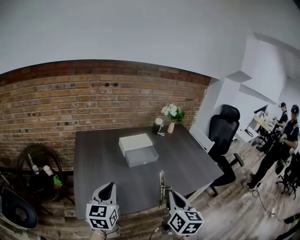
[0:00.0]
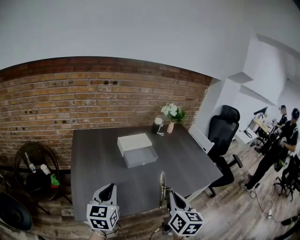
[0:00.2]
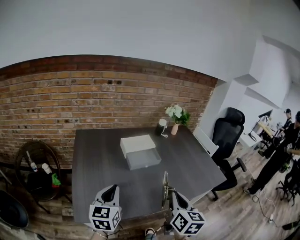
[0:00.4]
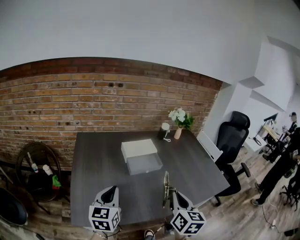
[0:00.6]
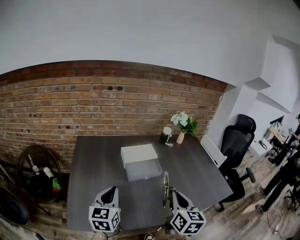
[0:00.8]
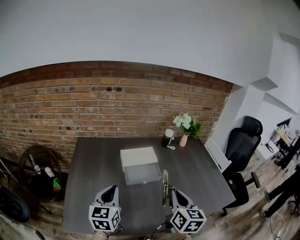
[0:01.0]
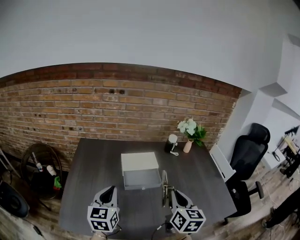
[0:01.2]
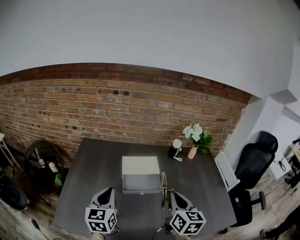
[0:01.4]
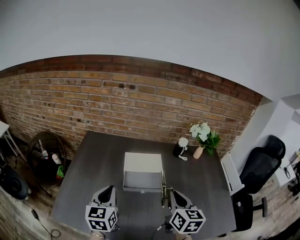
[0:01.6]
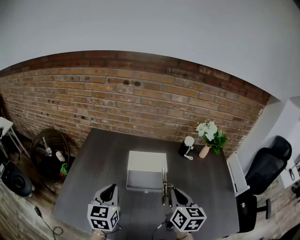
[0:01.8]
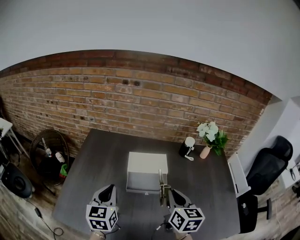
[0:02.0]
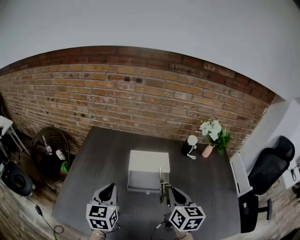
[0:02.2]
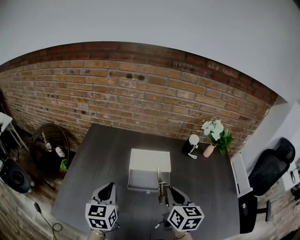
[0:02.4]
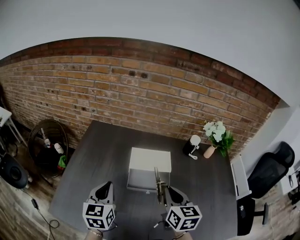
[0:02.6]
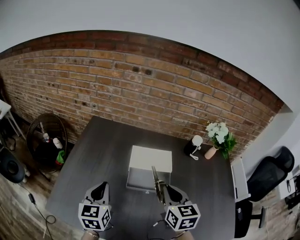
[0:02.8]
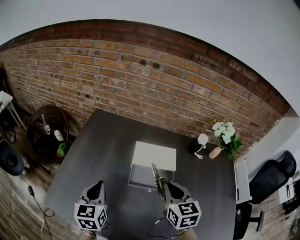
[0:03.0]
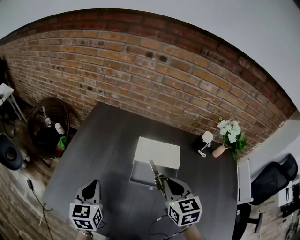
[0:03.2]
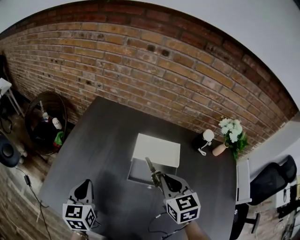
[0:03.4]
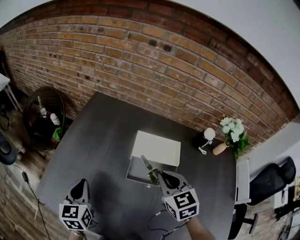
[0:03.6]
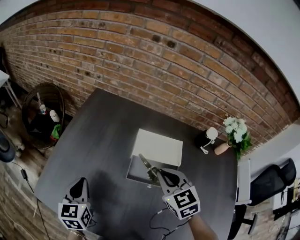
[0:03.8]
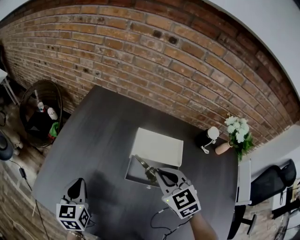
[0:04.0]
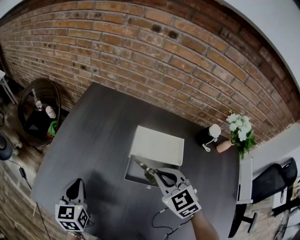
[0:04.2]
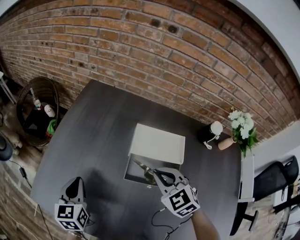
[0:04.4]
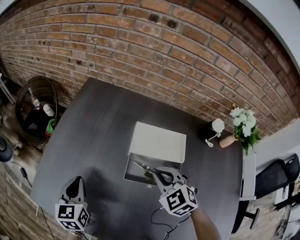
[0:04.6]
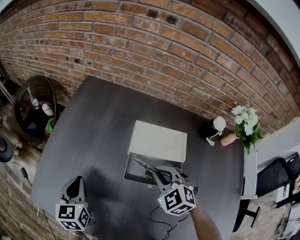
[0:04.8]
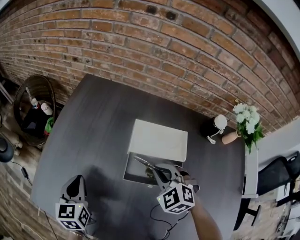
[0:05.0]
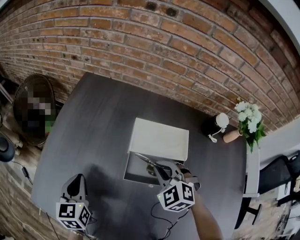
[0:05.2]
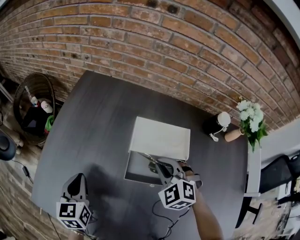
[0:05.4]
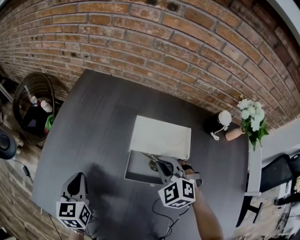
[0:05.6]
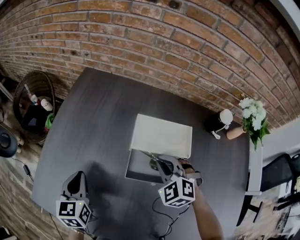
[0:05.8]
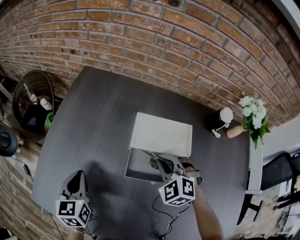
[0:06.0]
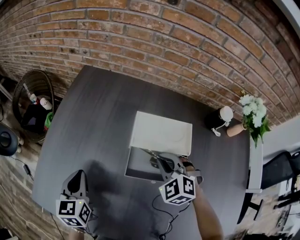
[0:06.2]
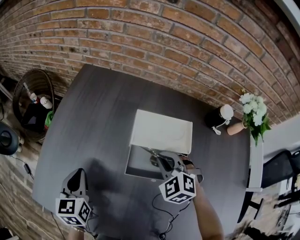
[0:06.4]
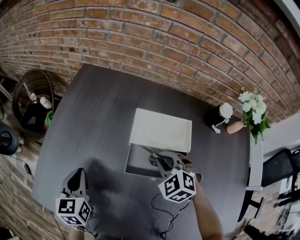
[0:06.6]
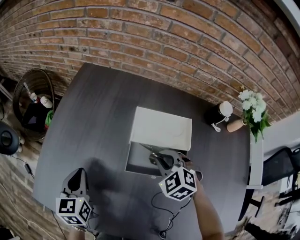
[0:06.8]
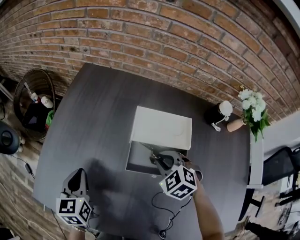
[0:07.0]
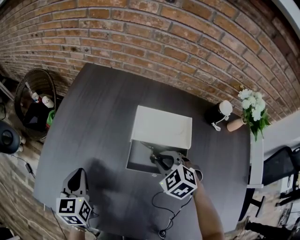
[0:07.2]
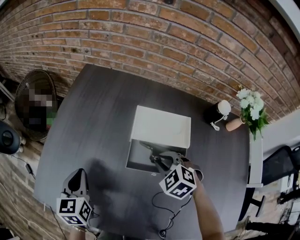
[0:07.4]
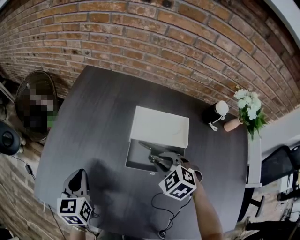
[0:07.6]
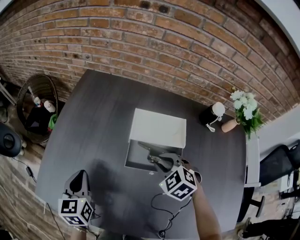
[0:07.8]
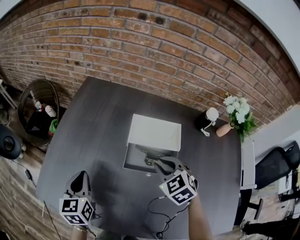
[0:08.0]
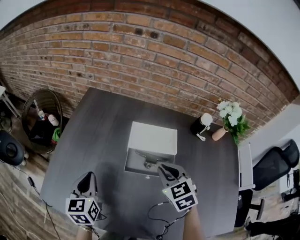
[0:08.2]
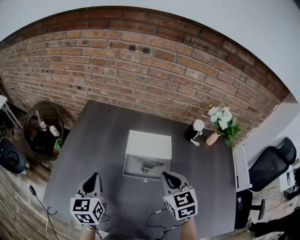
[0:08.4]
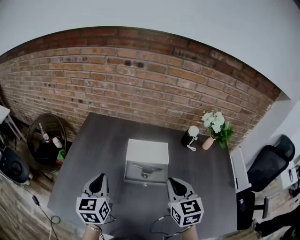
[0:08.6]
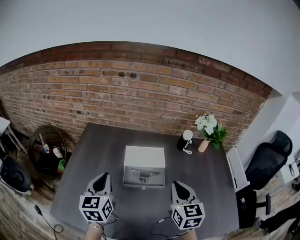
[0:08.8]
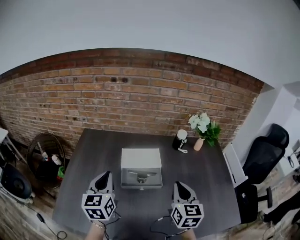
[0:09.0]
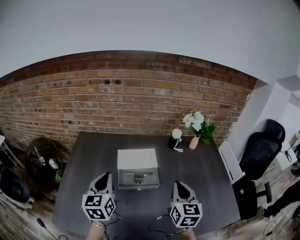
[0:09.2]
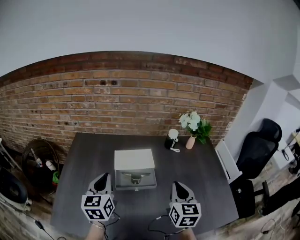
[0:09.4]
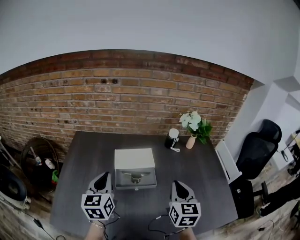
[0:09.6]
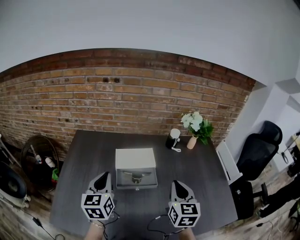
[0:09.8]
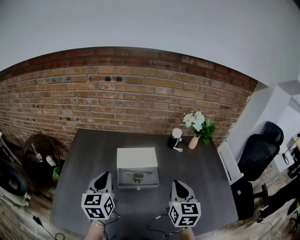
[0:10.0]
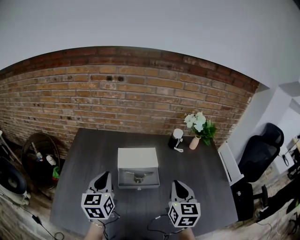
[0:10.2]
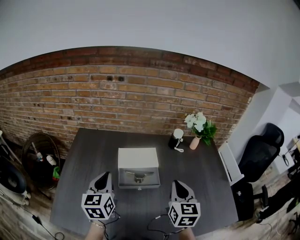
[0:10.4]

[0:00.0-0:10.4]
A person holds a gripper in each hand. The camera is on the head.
0:00.0 to 0:01.4: The right gripper travels forward by some 30 cm, and turns by some 20 degrees. The left gripper travels forward and to the right by roughly 20 cm, and changes its angle by approximately 20 degrees.
0:01.4 to 0:03.0: The right gripper moves forward, downward and to the left, approximately 15 cm, and rotates roughly 30 degrees, while the left gripper travels downward and to the left by approximately 10 cm.
0:03.0 to 0:04.4: The right gripper goes approximately 10 cm downward and forward, and turns by approximately 40 degrees; the left gripper goes approximately 10 cm downward and to the left.
0:04.4 to 0:06.0: The right gripper heads downward, covering roughly 5 cm.
0:06.0 to 0:07.4: The grippers move only a little.
0:07.4 to 0:09.0: The grippers both shift upward by about 20 cm. The right gripper tips its fingers upward by approximately 50 degrees; the left gripper turns by some 30 degrees.
0:09.0 to 0:10.4: The grippers move only a little.

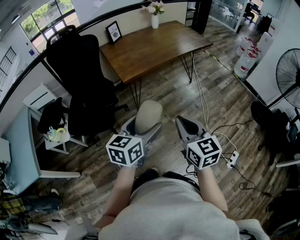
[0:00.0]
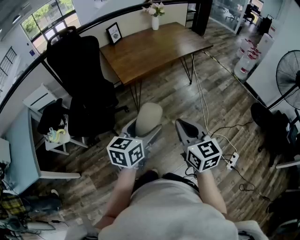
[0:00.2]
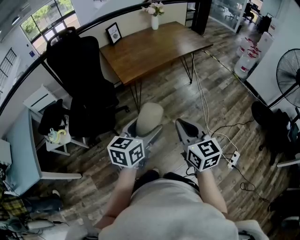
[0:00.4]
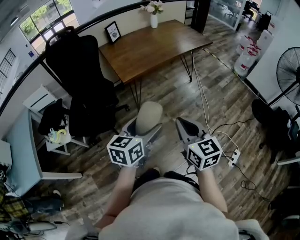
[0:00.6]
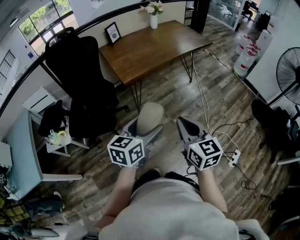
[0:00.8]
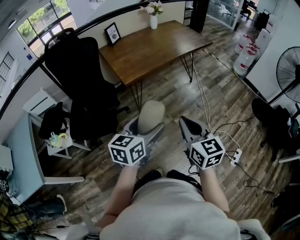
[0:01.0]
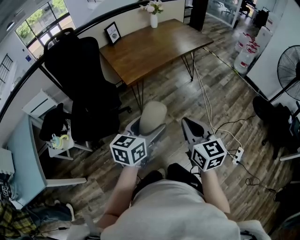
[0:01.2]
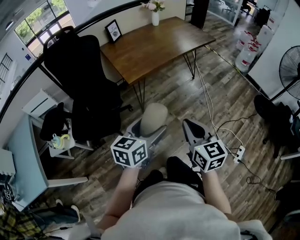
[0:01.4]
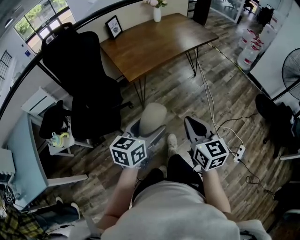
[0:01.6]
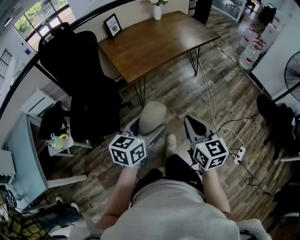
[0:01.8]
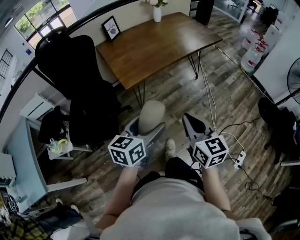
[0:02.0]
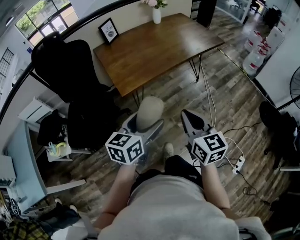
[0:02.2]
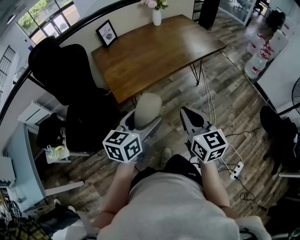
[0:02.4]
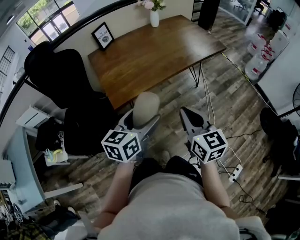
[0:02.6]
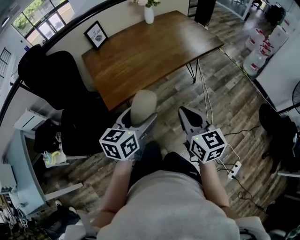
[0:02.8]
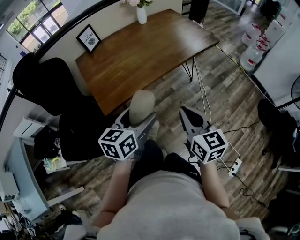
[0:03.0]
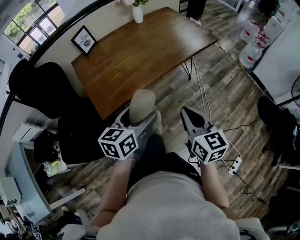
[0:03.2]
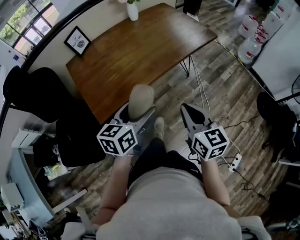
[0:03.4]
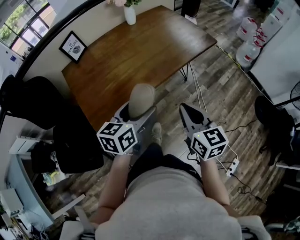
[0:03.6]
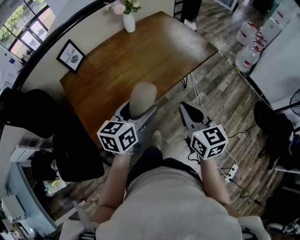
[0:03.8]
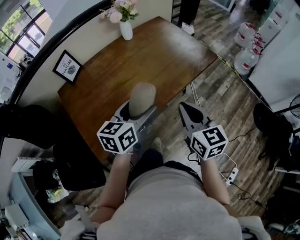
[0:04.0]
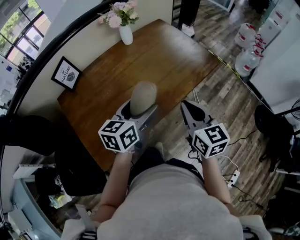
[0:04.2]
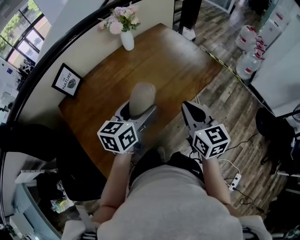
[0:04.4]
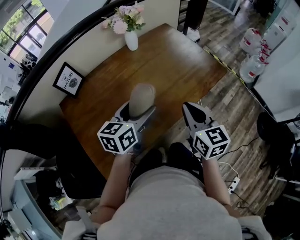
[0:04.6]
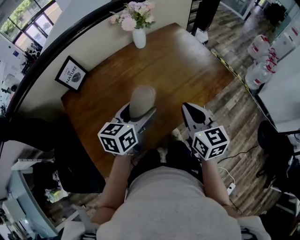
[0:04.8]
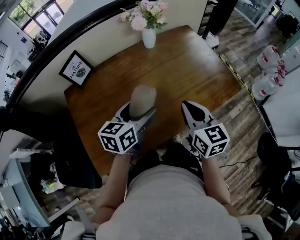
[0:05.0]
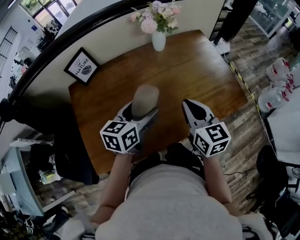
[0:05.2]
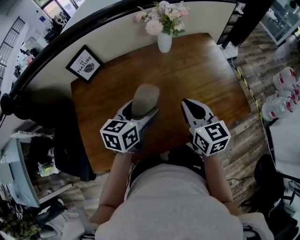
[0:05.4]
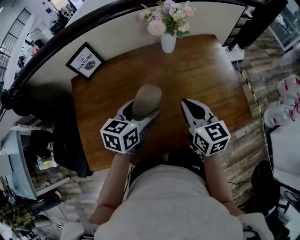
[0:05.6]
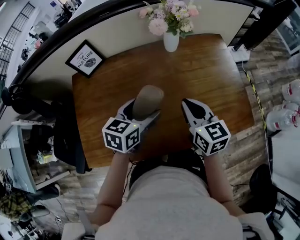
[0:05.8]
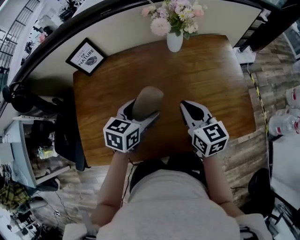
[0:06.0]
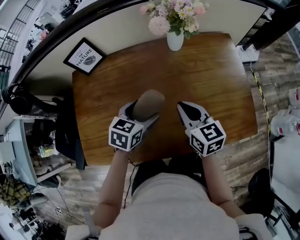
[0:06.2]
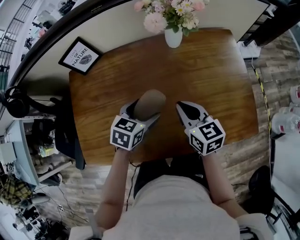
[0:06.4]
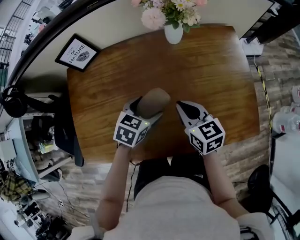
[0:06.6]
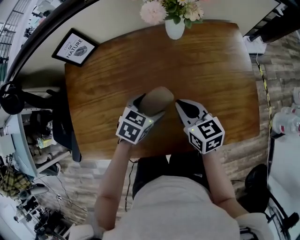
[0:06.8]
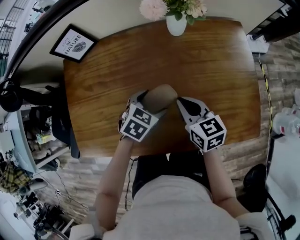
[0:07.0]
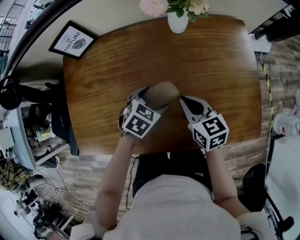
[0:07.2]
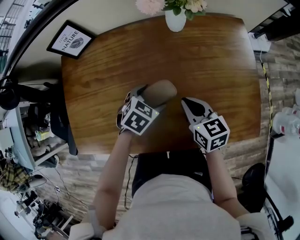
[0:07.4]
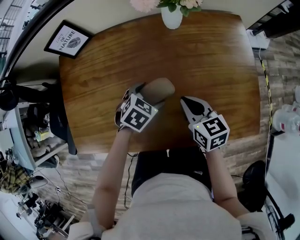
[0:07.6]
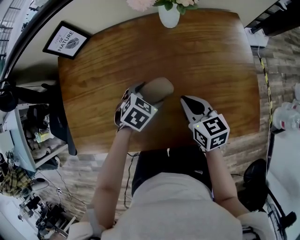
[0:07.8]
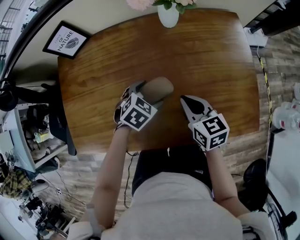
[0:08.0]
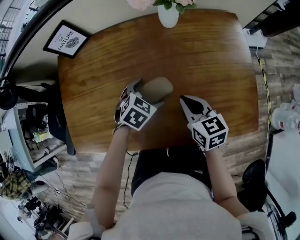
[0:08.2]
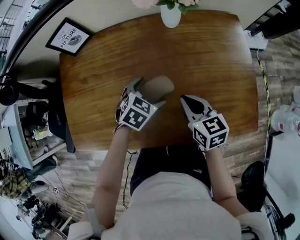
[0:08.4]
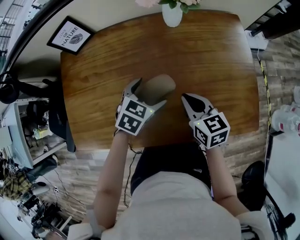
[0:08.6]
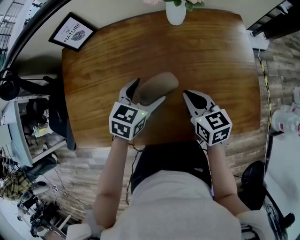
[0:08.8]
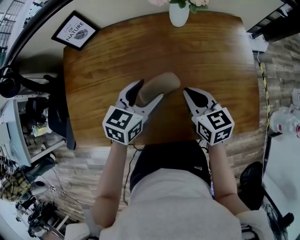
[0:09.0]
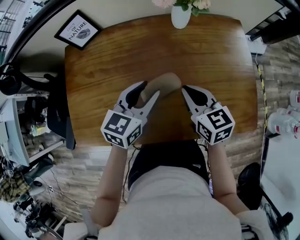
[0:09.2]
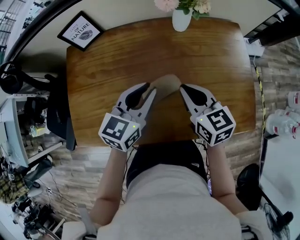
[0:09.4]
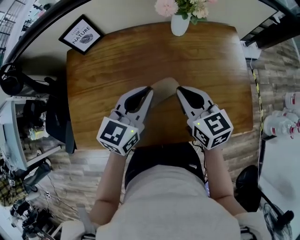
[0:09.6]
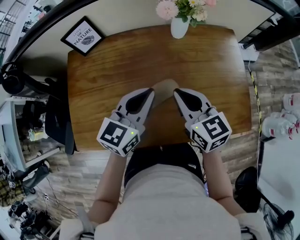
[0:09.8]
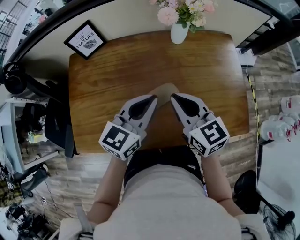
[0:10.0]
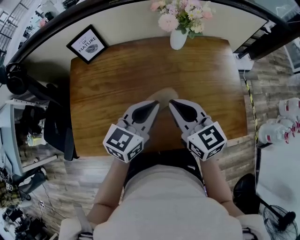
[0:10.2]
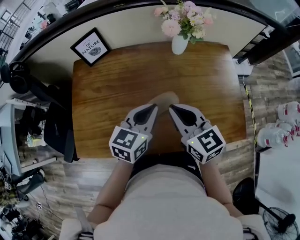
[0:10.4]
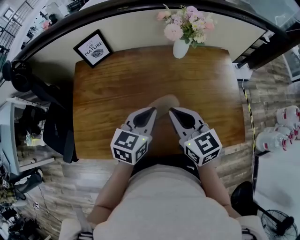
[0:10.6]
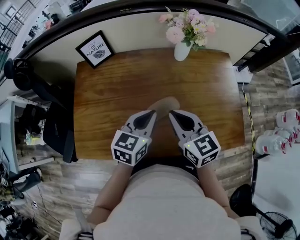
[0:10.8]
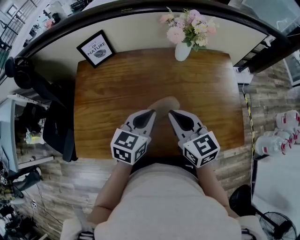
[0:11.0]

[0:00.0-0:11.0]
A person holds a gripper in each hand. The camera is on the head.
0:00.0 to 0:01.6: The left gripper shifts by roughly 5 cm, while the right gripper ends up some 5 cm from where it was.
0:01.6 to 0:03.2: Both grippers travel together forward, about 30 cm.
0:03.2 to 0:04.8: The grippers both shift forward by roughly 35 cm.
0:04.8 to 0:06.2: The left gripper ends up roughly 15 cm from where it was, and changes its angle by about 30 degrees. The right gripper moves roughly 20 cm, and changes its angle by about 30 degrees.
0:06.2 to 0:07.8: The left gripper travels downward and to the right by some 10 cm, and rotates about 30 degrees; the right gripper shifts approximately 10 cm downward.
0:07.8 to 0:09.4: The right gripper travels upward by some 10 cm; the left gripper is displaced upward by roughly 20 cm, tips its fingers upward by about 40 degrees, and closes.
0:09.4 to 0:11.0: The right gripper moves upward and to the left, approximately 10 cm.

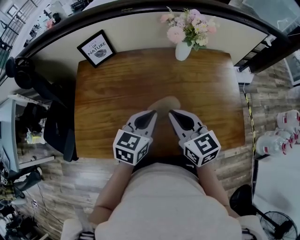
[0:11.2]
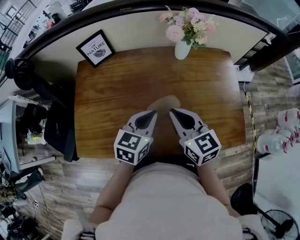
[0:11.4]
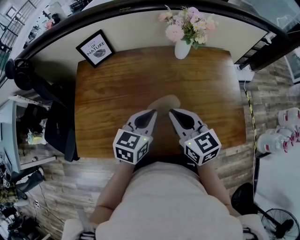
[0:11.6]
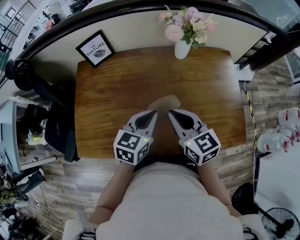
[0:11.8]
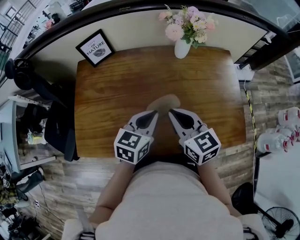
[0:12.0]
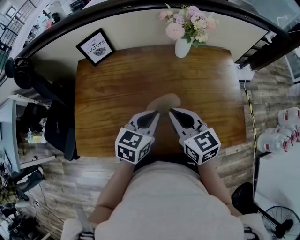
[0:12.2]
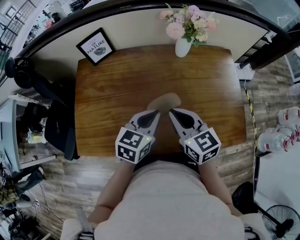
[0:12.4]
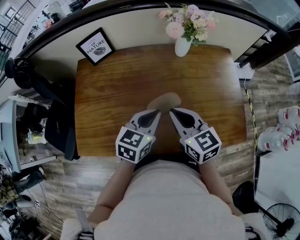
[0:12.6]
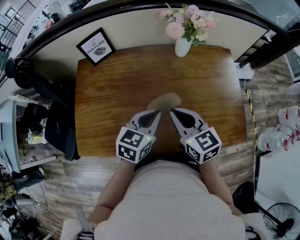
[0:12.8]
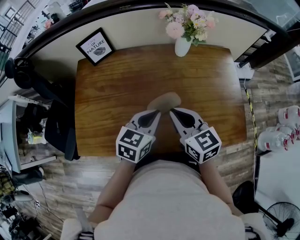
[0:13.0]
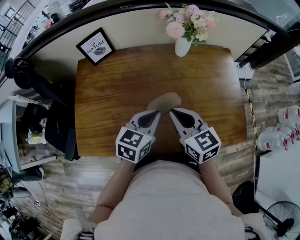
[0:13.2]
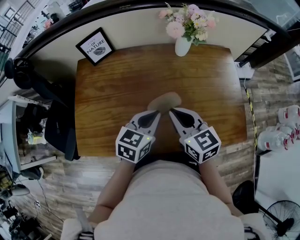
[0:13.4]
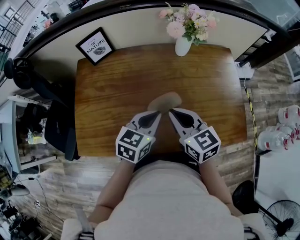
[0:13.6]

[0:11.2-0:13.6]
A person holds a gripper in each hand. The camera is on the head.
0:11.2 to 0:12.4: The grippers make only small movements.
0:12.4 to 0:13.6: Neither gripper changes place.
